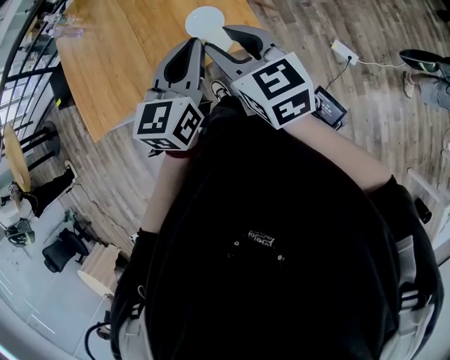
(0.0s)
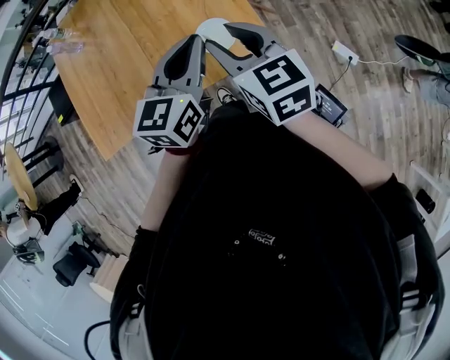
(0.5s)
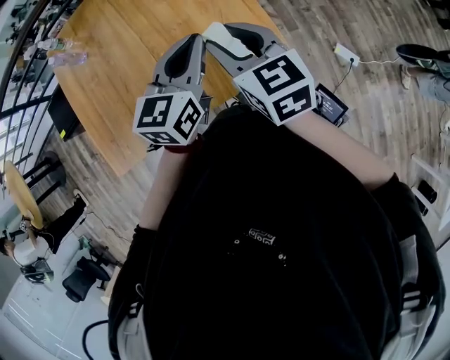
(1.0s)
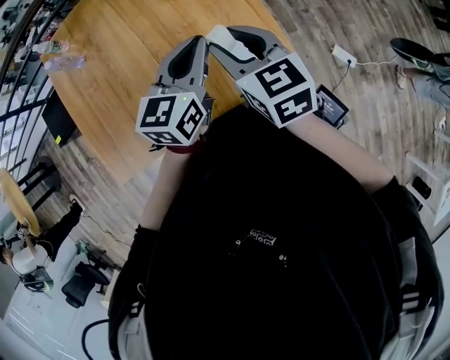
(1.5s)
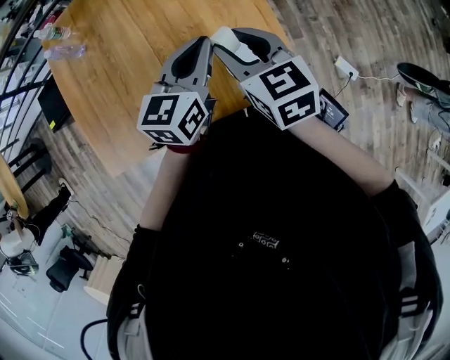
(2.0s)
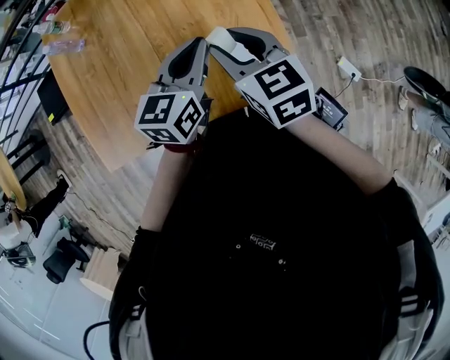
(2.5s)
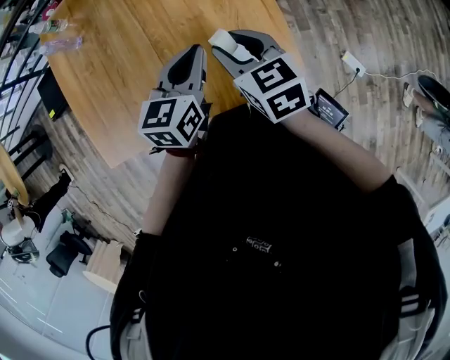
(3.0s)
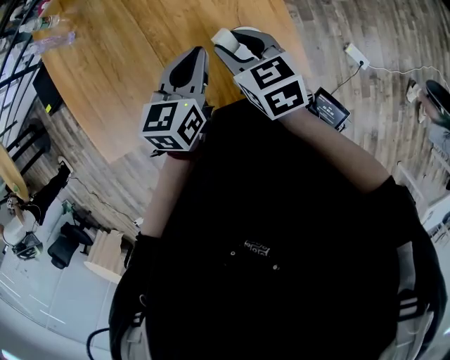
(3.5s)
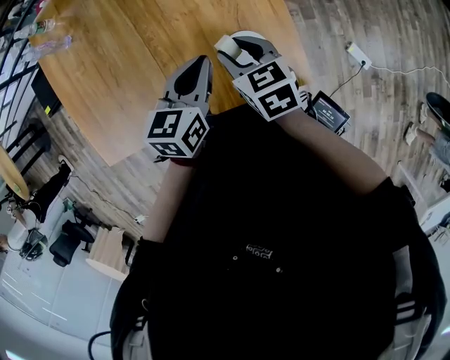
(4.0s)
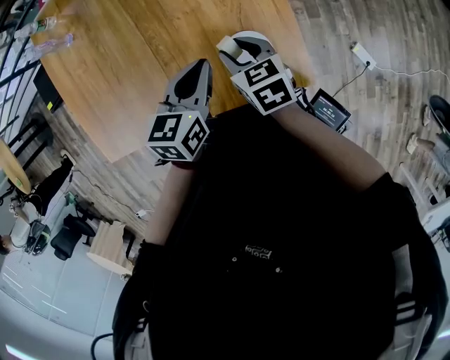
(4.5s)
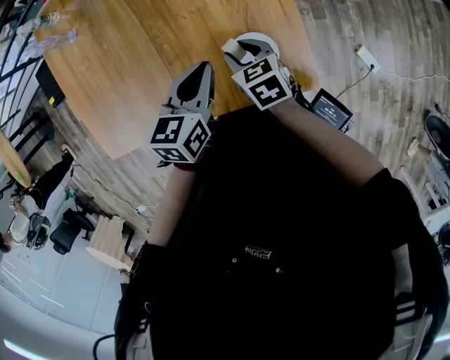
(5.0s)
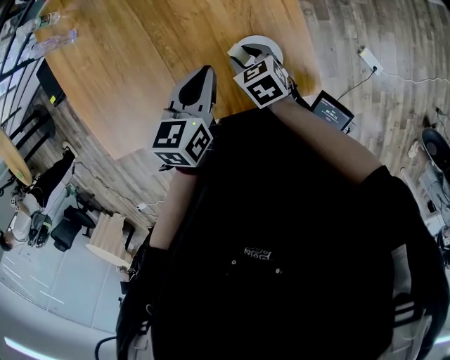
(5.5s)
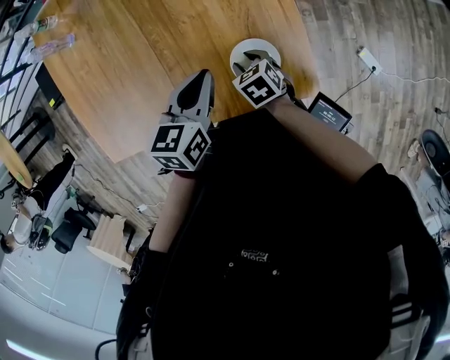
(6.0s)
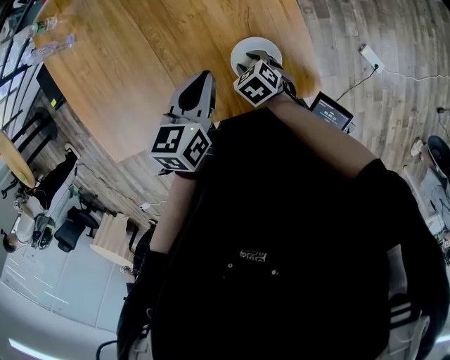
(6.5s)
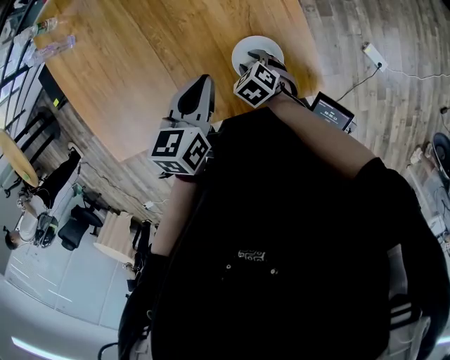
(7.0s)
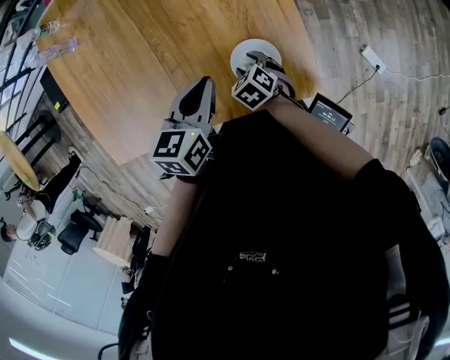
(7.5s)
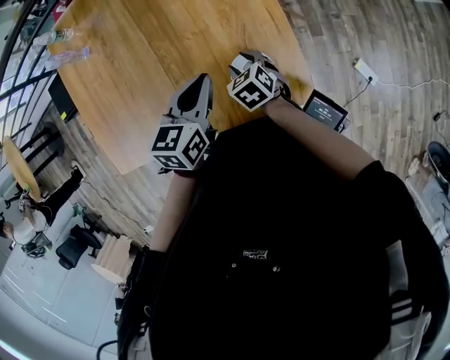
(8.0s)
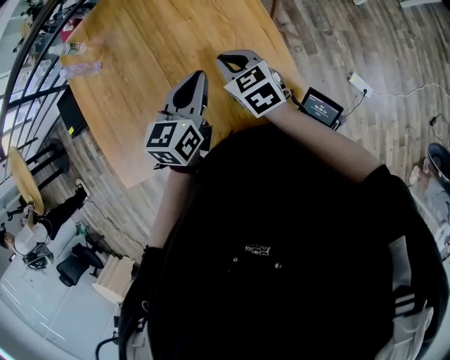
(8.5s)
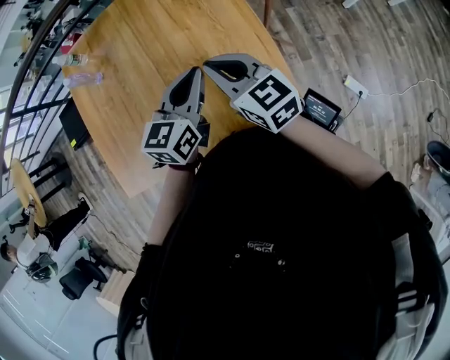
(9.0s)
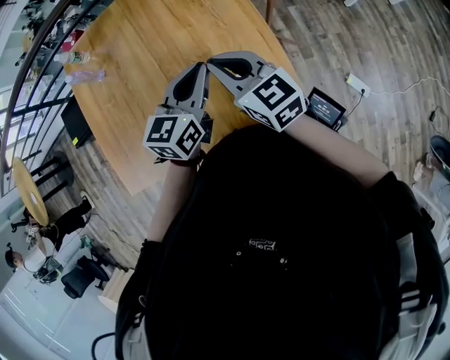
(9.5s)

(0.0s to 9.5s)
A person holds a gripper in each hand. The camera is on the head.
0.0s - 2.0s: The two grippers go roughly 25 cm forward and to the left.
2.0s - 4.0s: Both grippers move downward, some 15 cm.
4.0s - 5.5s: The right gripper is displaced downward by roughly 10 cm.
5.5s - 7.5s: The right gripper goes about 5 cm downward.
7.5s - 9.5s: The right gripper shifts about 35 cm upward, tips its fingers upward by about 50 degrees, and closes, while the left gripper travels upward by roughly 15 cm, and swivels about 30 degrees.

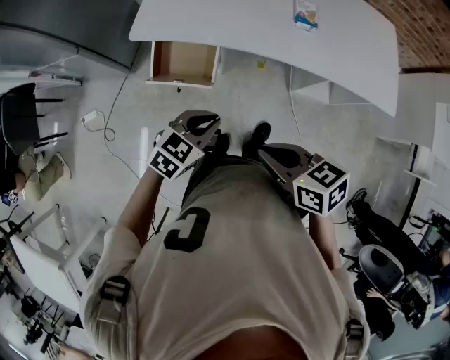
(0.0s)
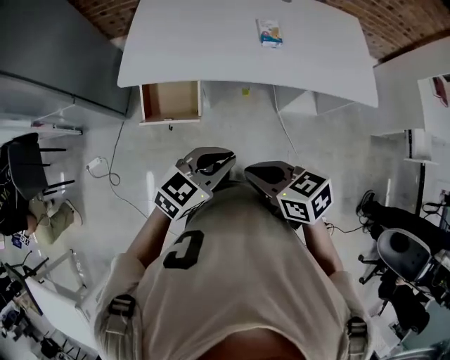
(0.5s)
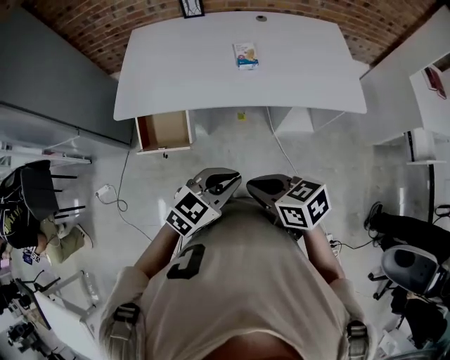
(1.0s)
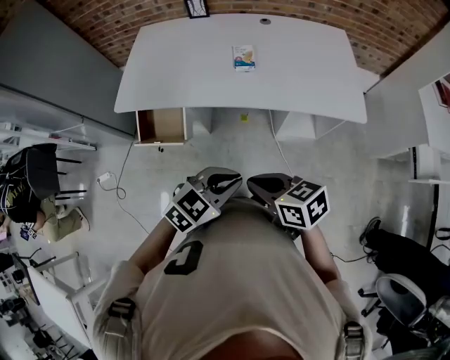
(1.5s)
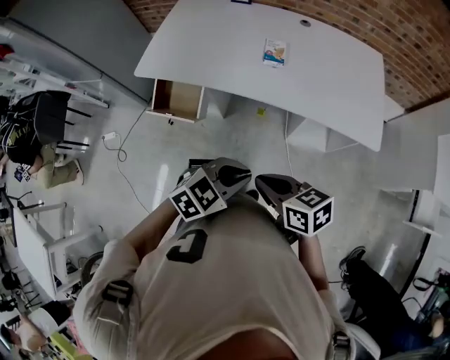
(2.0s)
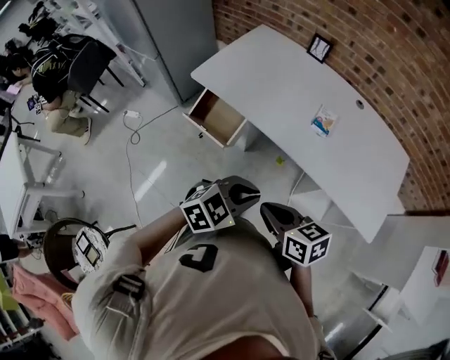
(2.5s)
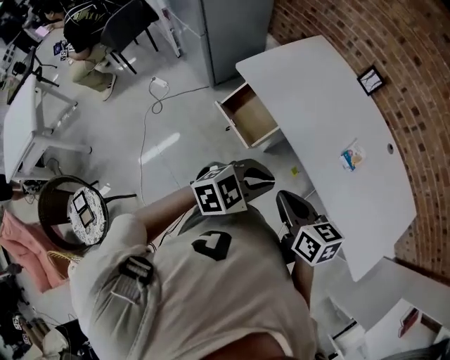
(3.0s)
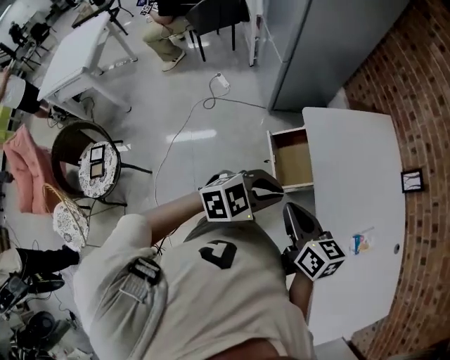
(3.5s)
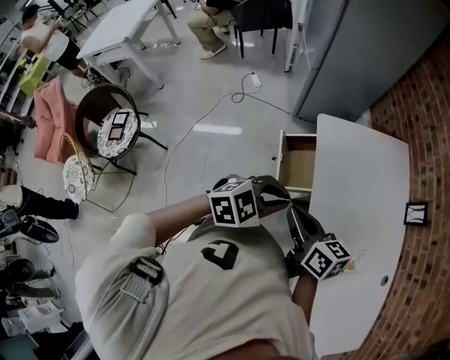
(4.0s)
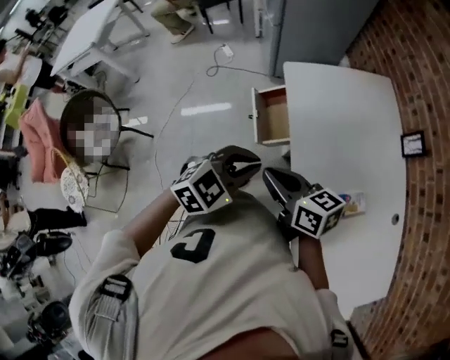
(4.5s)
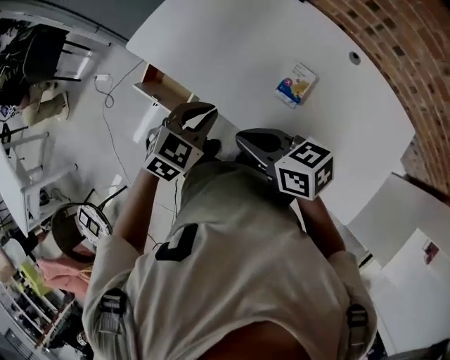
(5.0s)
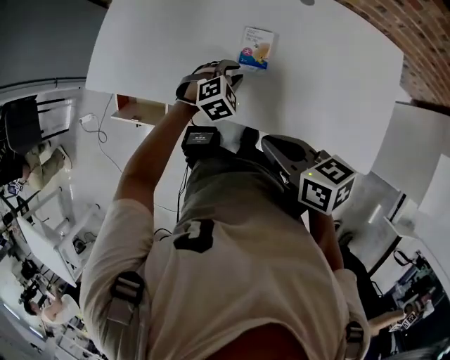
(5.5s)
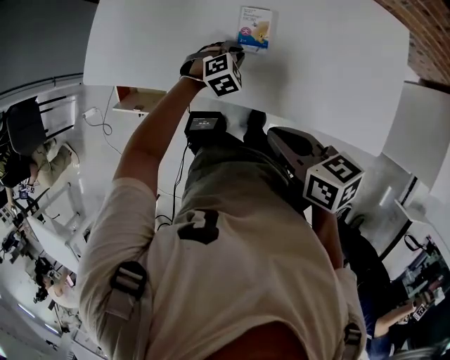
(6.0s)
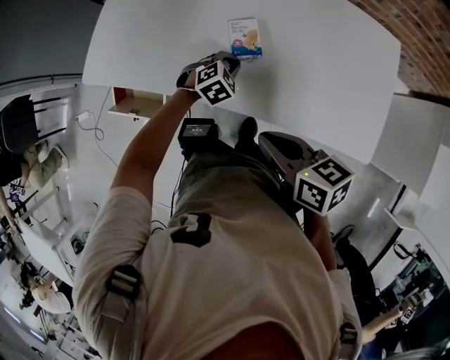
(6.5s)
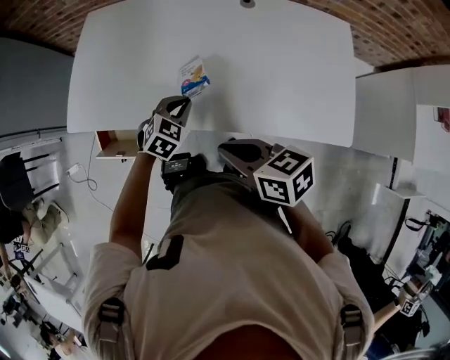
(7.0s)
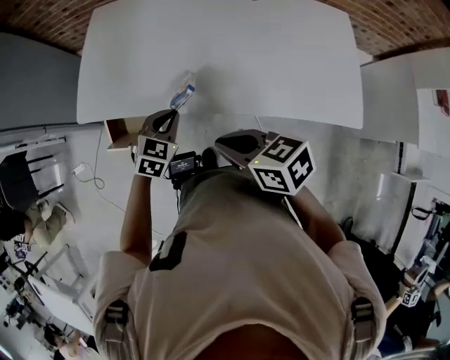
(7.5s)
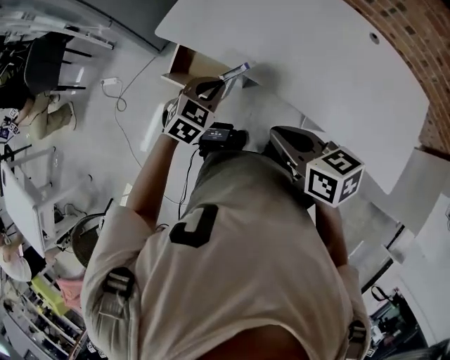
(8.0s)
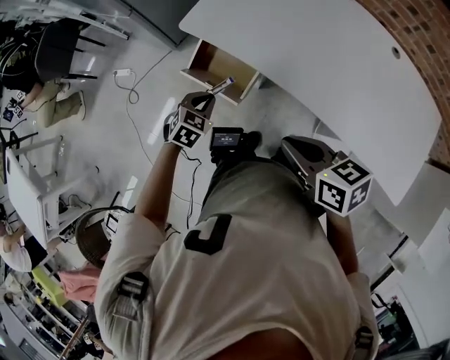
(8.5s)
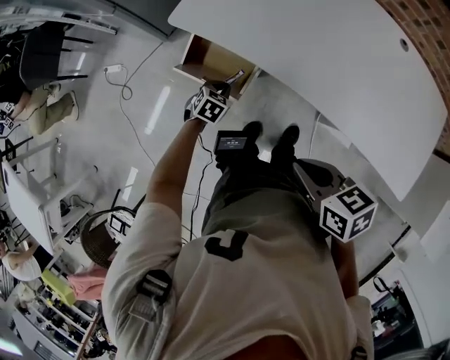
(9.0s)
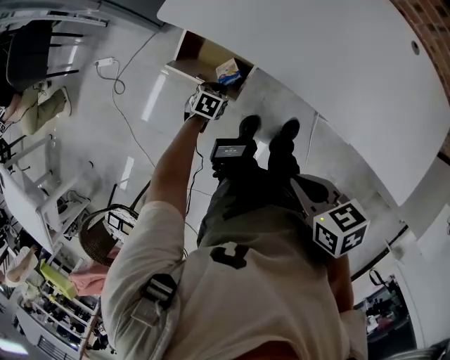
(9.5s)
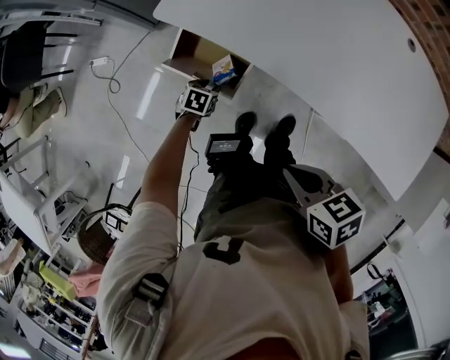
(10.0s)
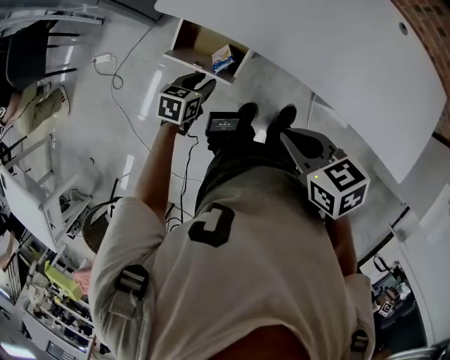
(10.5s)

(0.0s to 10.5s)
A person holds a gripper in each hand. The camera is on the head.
0.0s - 2.0s: Both grippers travel together to the right, some 25 cm.
2.0s - 4.0s: The left gripper shifts by roughly 30 cm, and rotates about 60 degrees; the right gripper changes place by approximately 35 cm, and rotates approximately 50 degrees.
4.0s - 6.5s: The right gripper ends up roughly 30 cm from where it was, and rotates some 60 degrees. Meanwhile the left gripper changes place by about 40 cm, and changes its angle by some 60 degrees.
6.5s - 8.5s: The left gripper moves to the left, roughly 50 cm, and changes its angle by roughly 40 degrees; the right gripper shifts roughly 25 cm to the left, and turns by approximately 20 degrees.
8.5s - 10.5s: The left gripper moves roughly 20 cm downward and comes back, turns by about 30 degrees, and opens up.

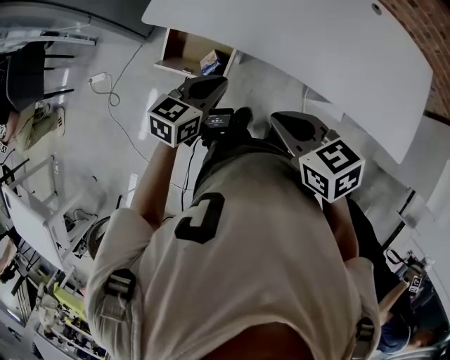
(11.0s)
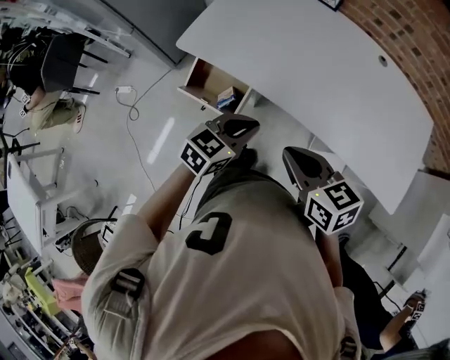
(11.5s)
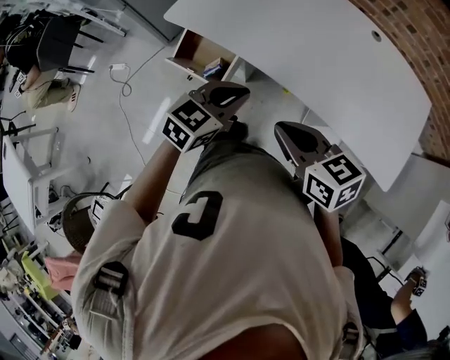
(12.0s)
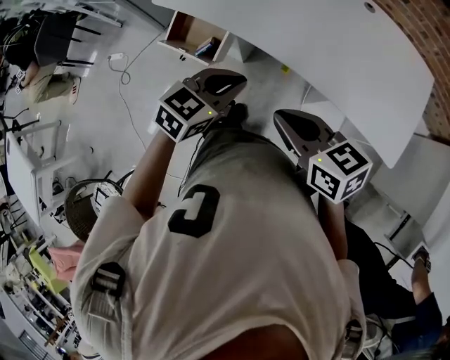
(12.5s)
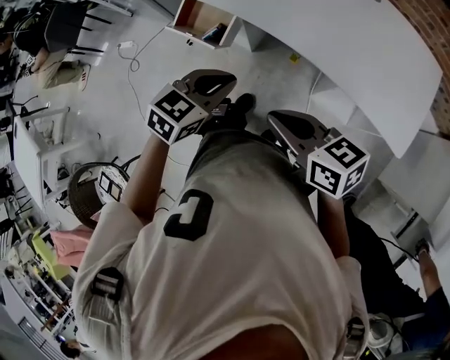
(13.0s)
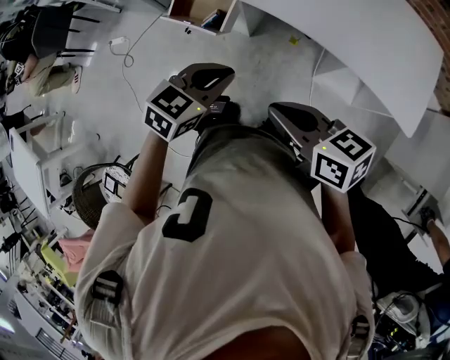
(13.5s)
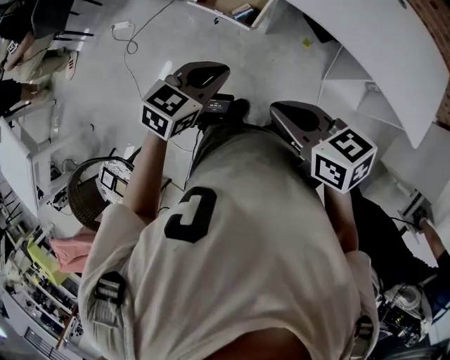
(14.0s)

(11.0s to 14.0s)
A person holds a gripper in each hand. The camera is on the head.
11.0s - 12.5s: The left gripper goes approximately 25 cm to the right, backward and upward. The right gripper heads to the right and backward, covering roughly 20 cm.
12.5s - 14.0s: Both grippers move to the left, about 25 cm.

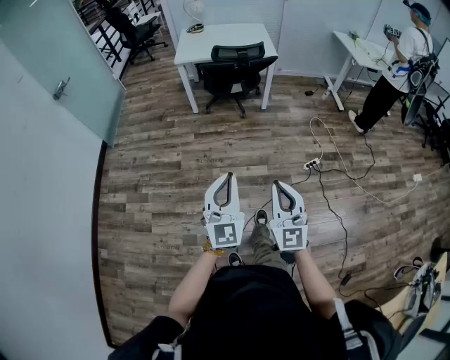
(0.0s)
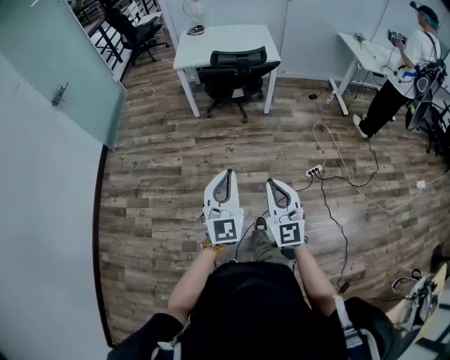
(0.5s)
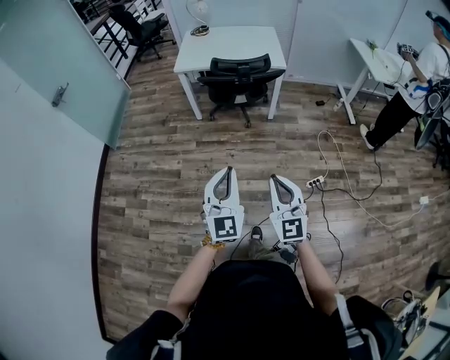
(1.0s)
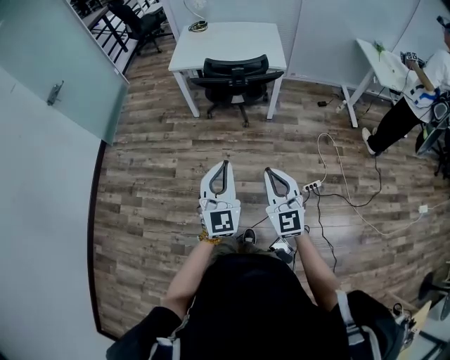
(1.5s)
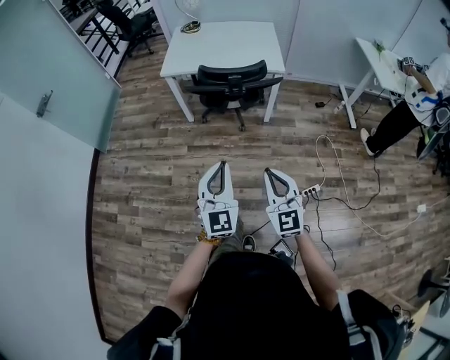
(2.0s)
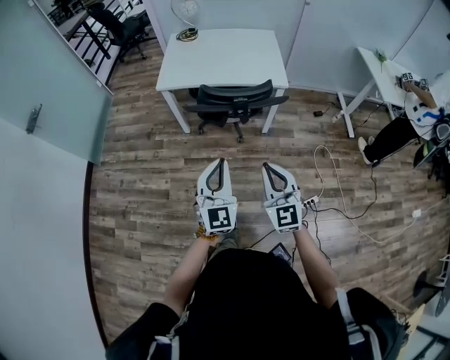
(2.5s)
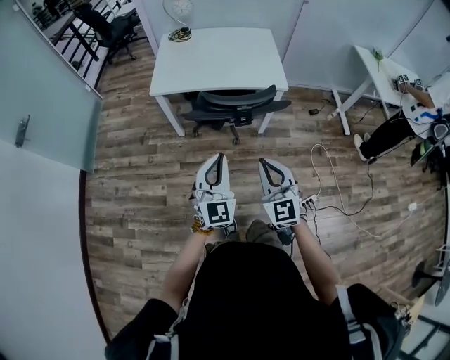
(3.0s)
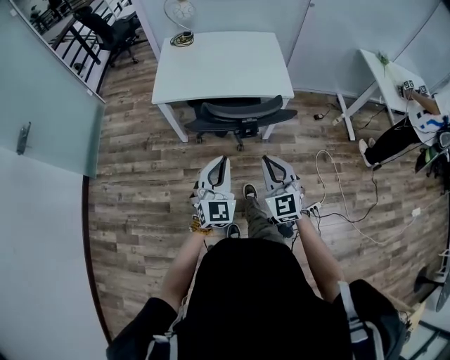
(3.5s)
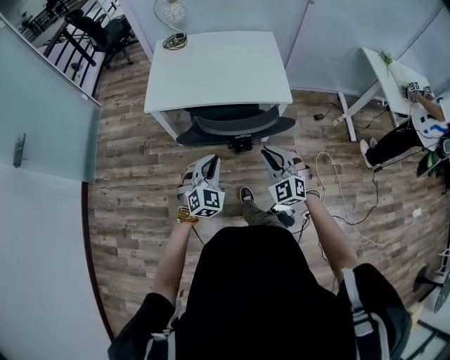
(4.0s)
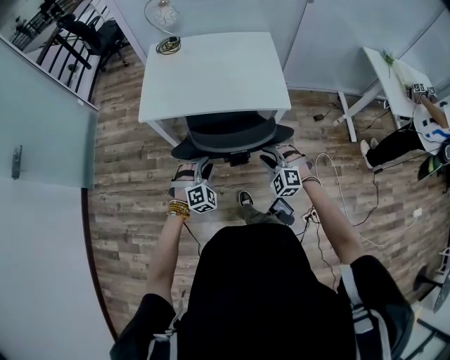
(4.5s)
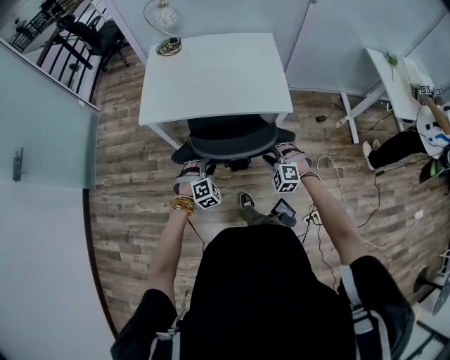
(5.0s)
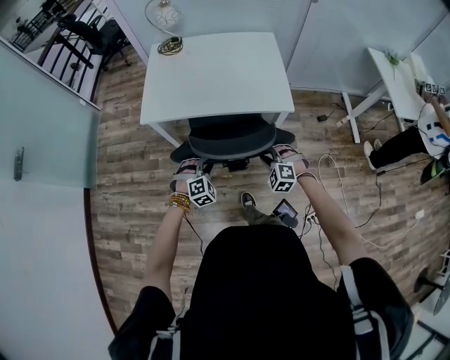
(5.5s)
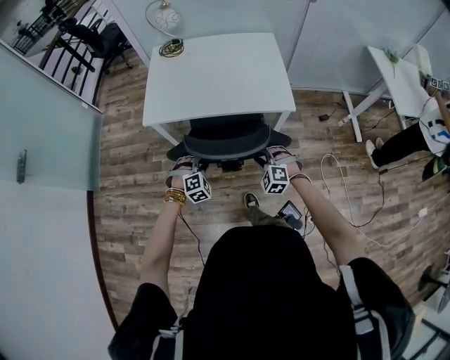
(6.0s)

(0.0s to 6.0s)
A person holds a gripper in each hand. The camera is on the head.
0.0s - 2.0s: Both grippers travel together forward, roughly 35 cm.
2.0s - 4.0s: Both grippers travel together forward, approximately 40 cm. The left gripper turns by about 30 degrees, while the right gripper changes its angle by roughly 30 degrees.
4.0s - 6.0s: The two grippers go roughly 15 cm downward and forward. The right gripper changes its angle by approximately 30 degrees. The left gripper turns by some 40 degrees, and opens.
